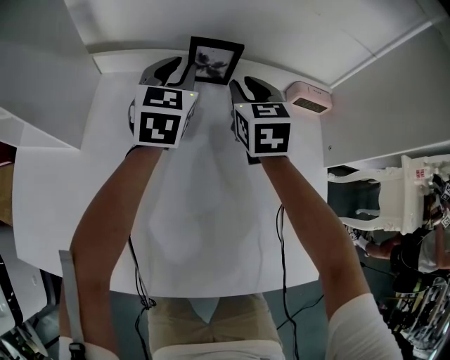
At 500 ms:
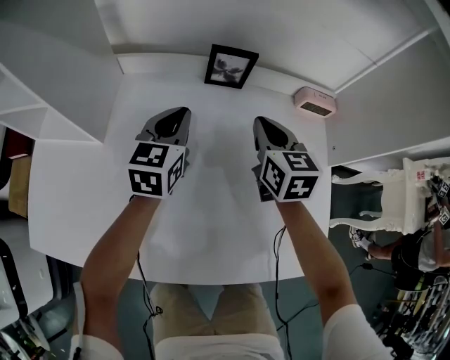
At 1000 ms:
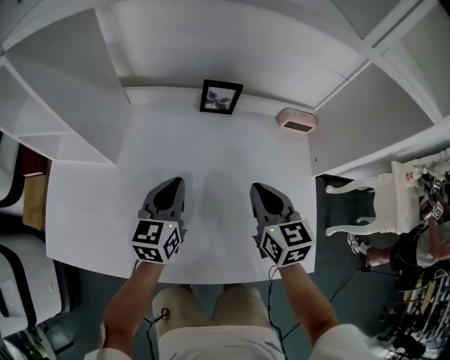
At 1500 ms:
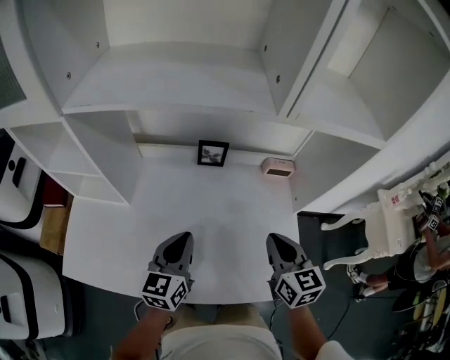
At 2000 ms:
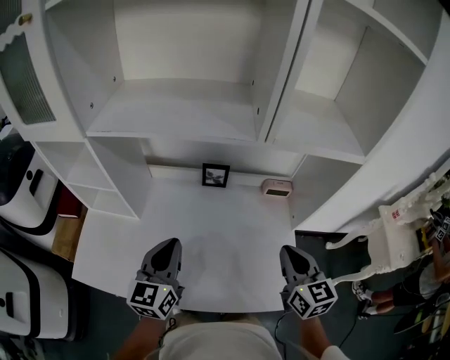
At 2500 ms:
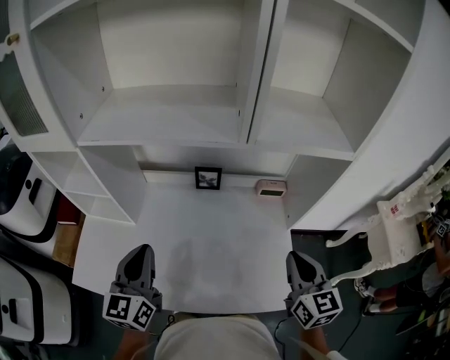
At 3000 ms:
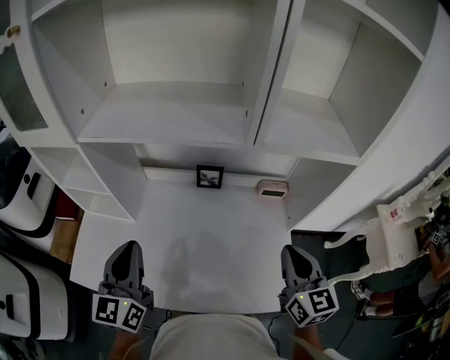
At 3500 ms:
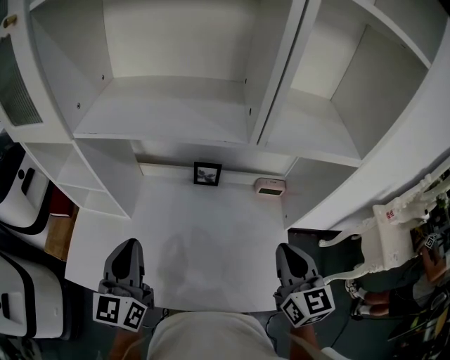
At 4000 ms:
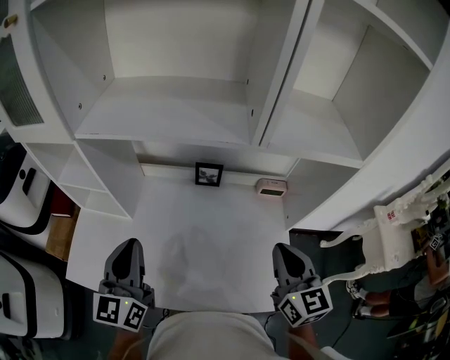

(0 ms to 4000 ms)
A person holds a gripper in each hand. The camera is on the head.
0 ms - 2000 ms: The grippers both shift backward and upward by about 40 cm. The left gripper swivels some 20 degrees.
2000 ms - 4000 ms: The right gripper ends up about 5 cm from where it was, while the left gripper goes some 10 cm upward and to the left.

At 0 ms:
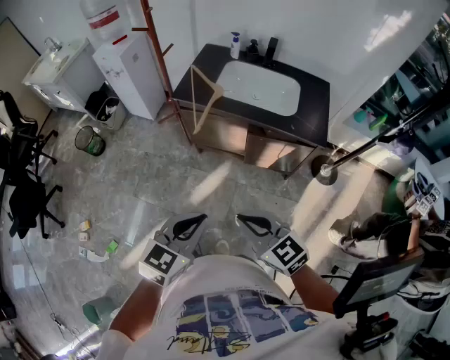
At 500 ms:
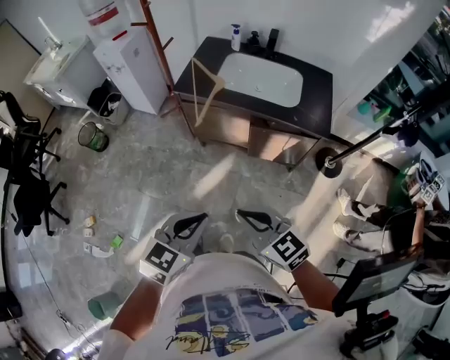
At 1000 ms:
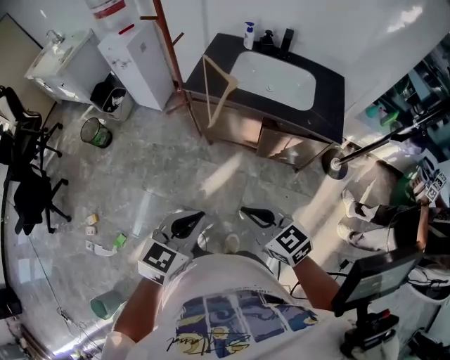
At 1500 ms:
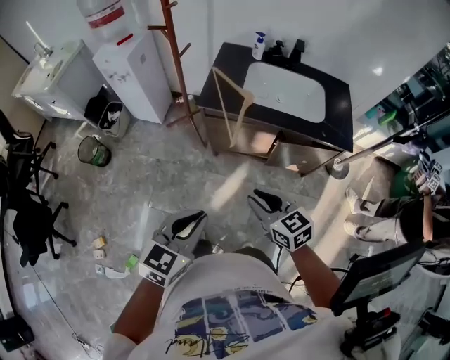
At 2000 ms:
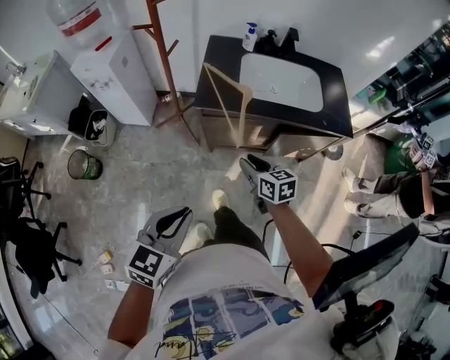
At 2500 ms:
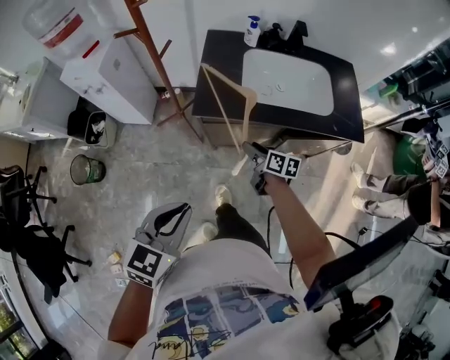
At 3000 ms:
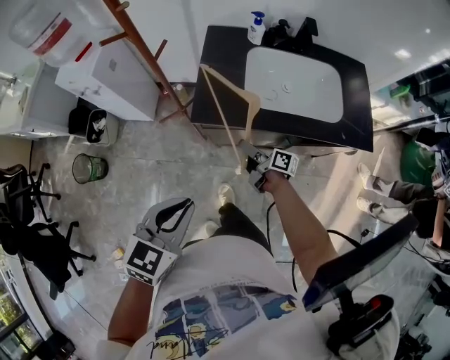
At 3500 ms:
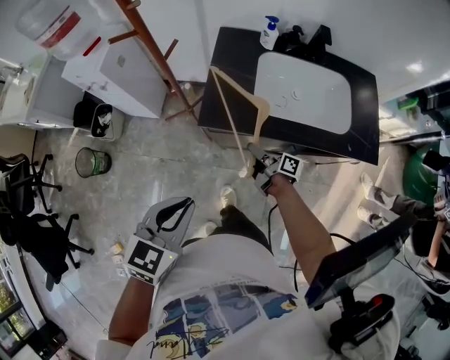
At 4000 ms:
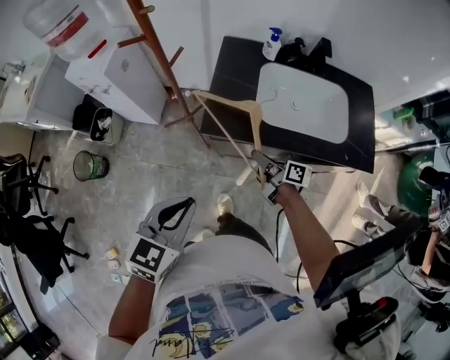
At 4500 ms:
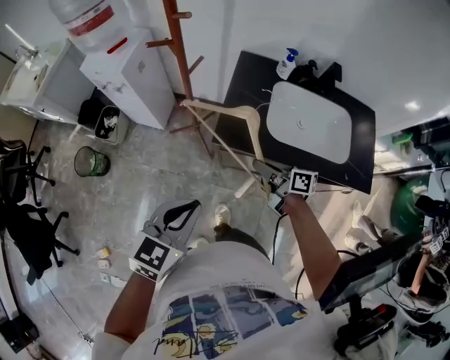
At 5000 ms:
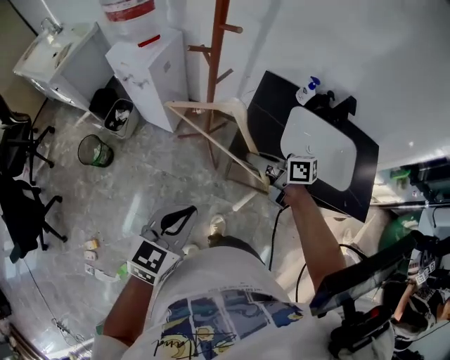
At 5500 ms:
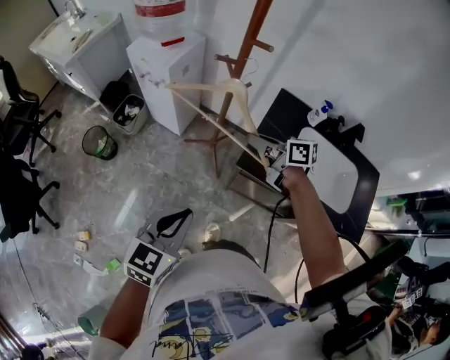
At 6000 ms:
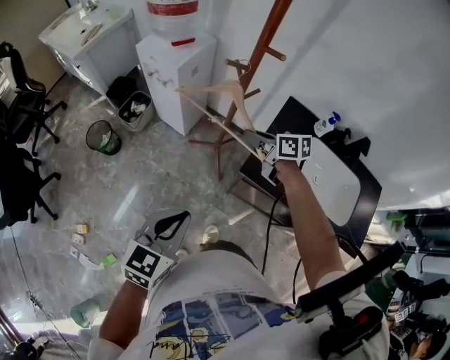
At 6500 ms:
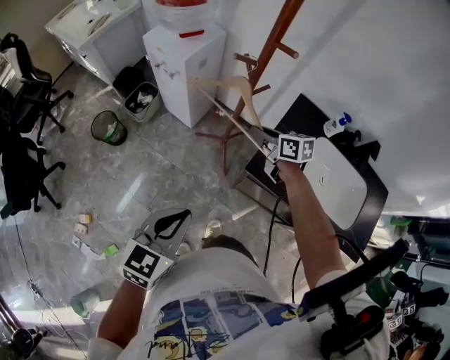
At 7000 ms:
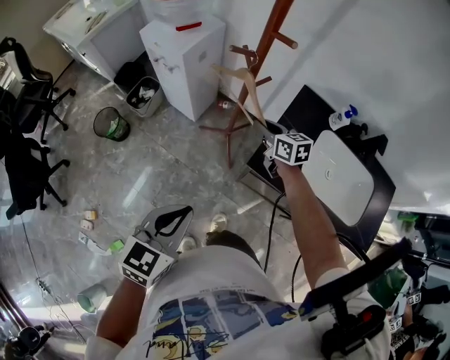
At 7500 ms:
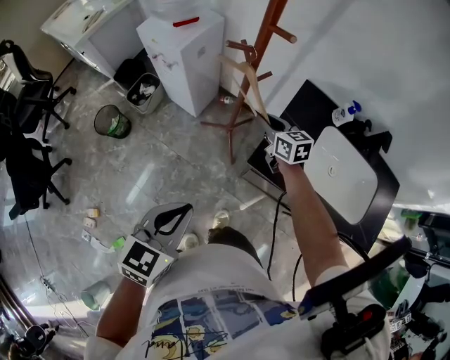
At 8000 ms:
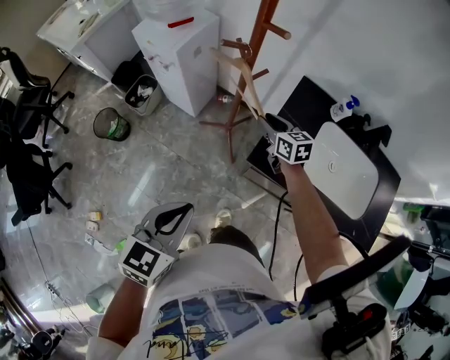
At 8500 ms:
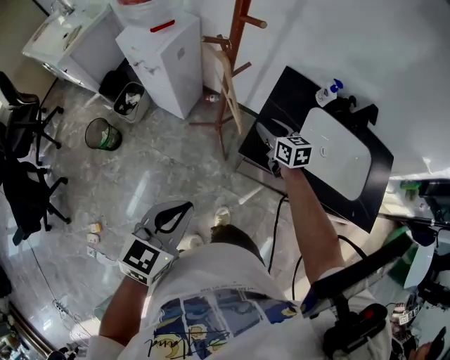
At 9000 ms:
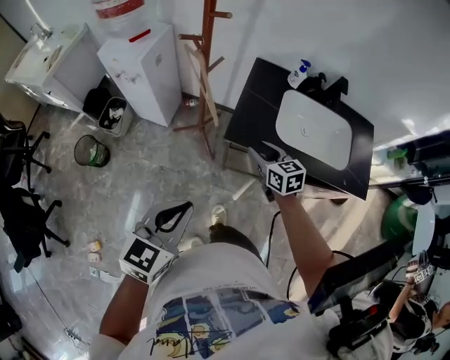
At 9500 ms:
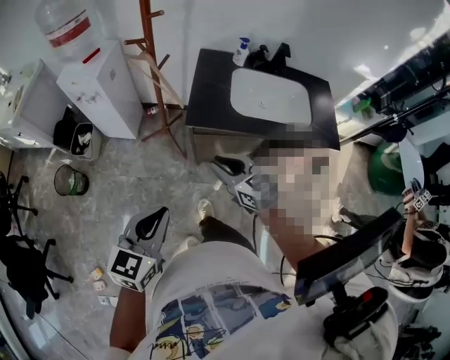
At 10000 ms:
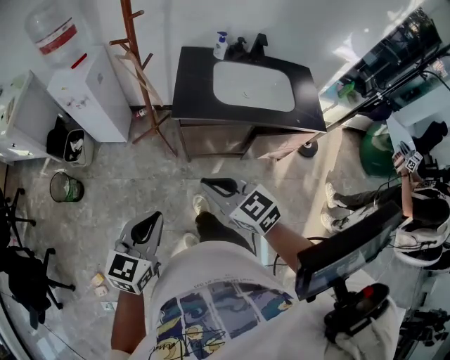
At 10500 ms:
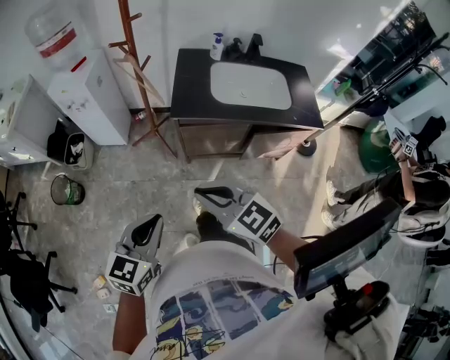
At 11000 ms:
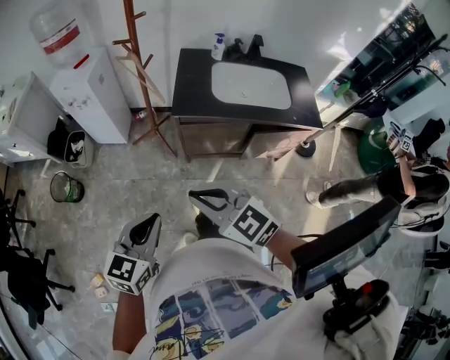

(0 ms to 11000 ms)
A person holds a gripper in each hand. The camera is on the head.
0 ms - 2000 ms: The left gripper moves to the left and forward, about 30 cm; the right gripper heads forward, to the left and downward, covering some 35 cm, turns by approximately 40 degrees, and opens.
2000 ms - 3500 ms: The right gripper moves forward and downward, some 20 cm, rolls clockwise, seen from behind, by approximately 60 degrees, and opens, then closes again. Meanwhile the left gripper moves forward, roughly 15 cm.
3500 ms - 5500 ms: The left gripper moves some 10 cm, and turns by approximately 20 degrees; the right gripper shifts by approximately 30 cm, and rotates approximately 50 degrees.
5500 ms - 7500 ms: The right gripper travels downward and forward by about 15 cm, and changes its angle by roughly 30 degrees.
7500 ms - 9000 ms: The left gripper goes approximately 5 cm backward. The right gripper moves backward and to the right, roughly 20 cm, and opens up.
9000 ms - 11000 ms: The right gripper moves backward and upward, some 35 cm, swivels approximately 30 degrees, and closes its fingers. Meanwhile the left gripper moves backward, approximately 15 cm.

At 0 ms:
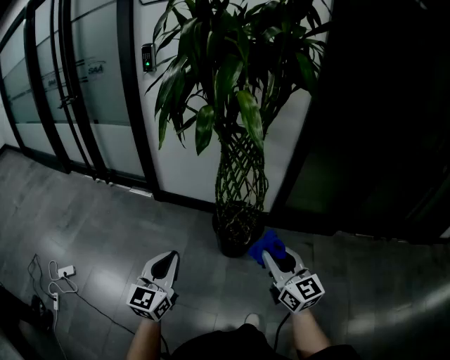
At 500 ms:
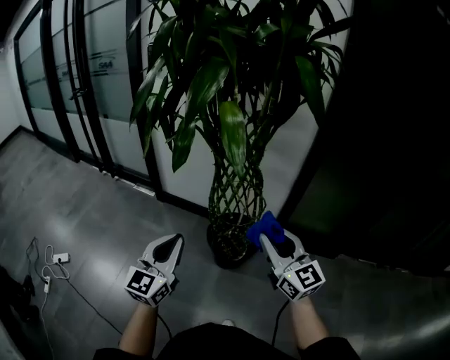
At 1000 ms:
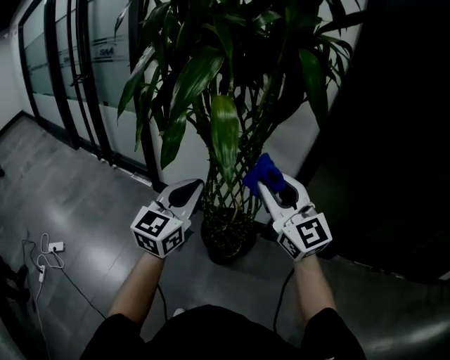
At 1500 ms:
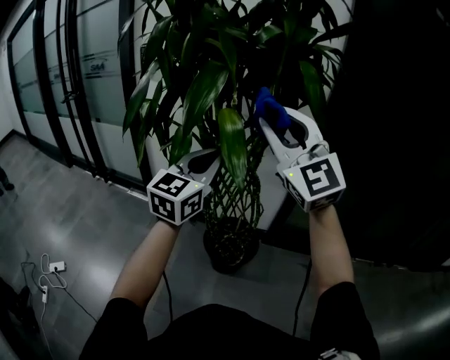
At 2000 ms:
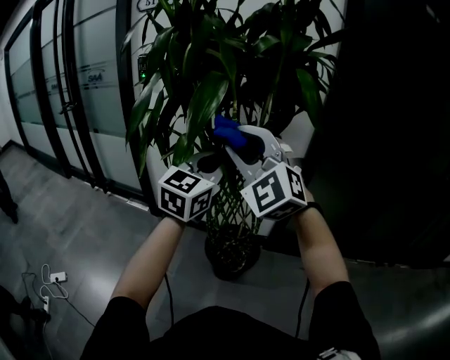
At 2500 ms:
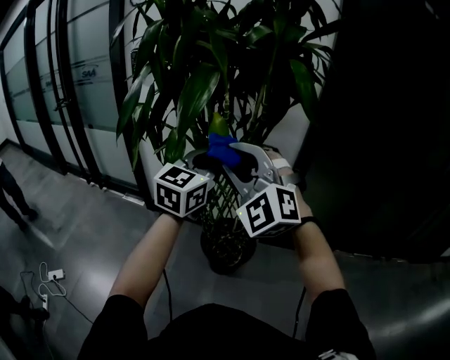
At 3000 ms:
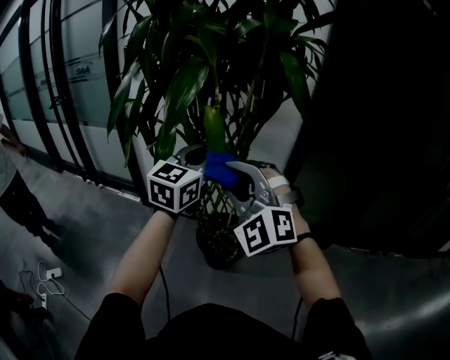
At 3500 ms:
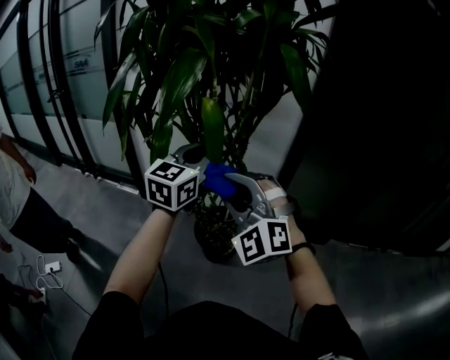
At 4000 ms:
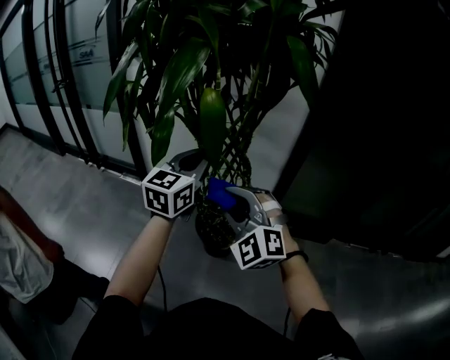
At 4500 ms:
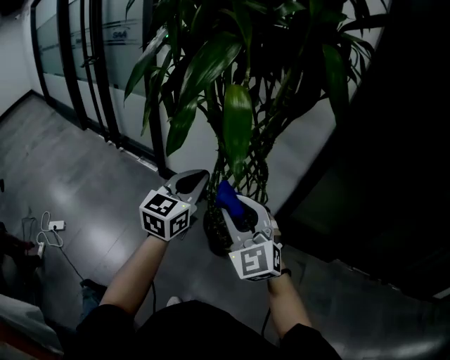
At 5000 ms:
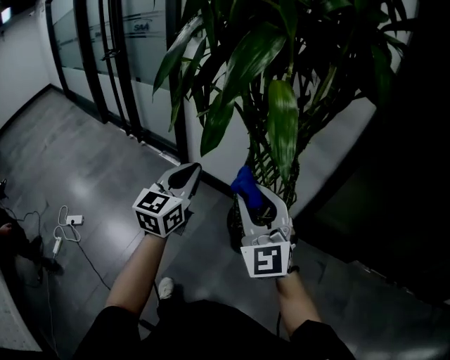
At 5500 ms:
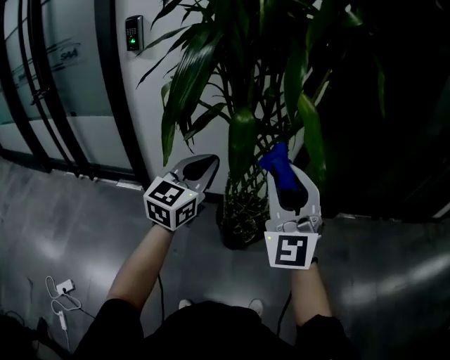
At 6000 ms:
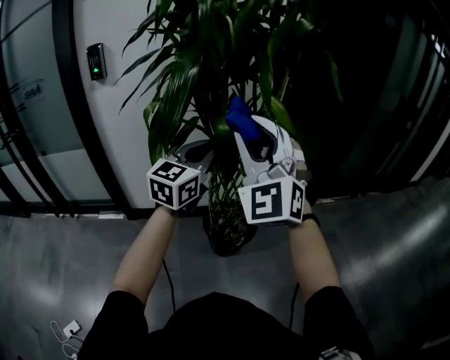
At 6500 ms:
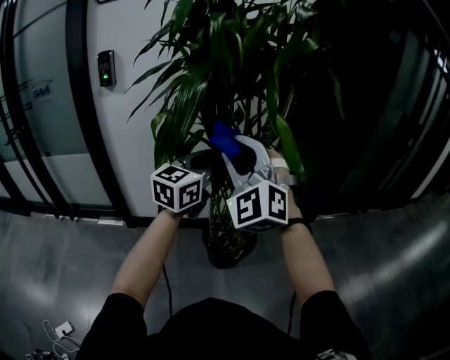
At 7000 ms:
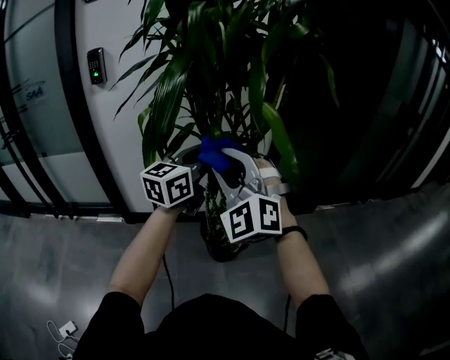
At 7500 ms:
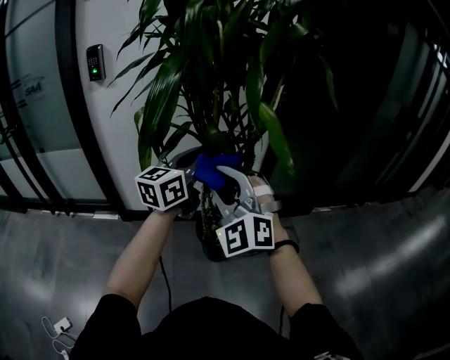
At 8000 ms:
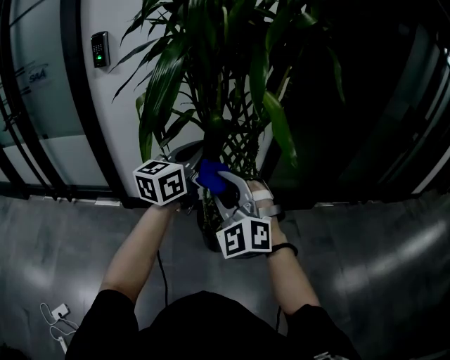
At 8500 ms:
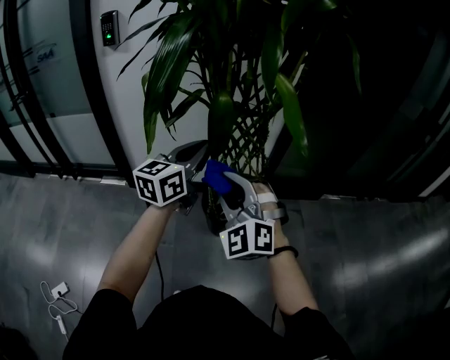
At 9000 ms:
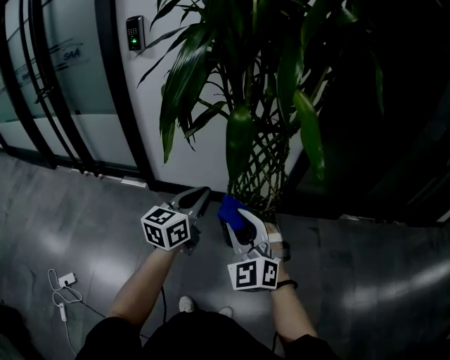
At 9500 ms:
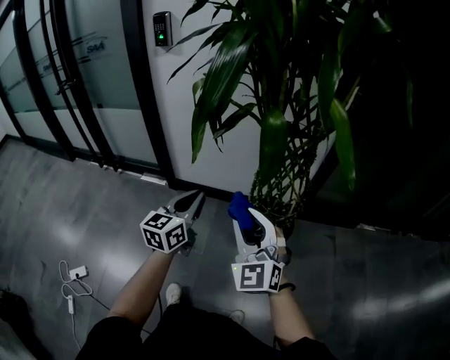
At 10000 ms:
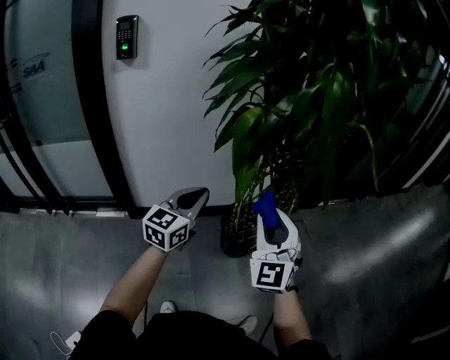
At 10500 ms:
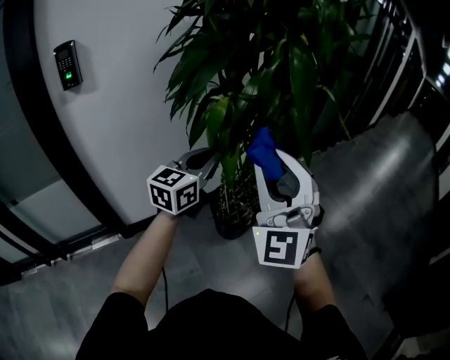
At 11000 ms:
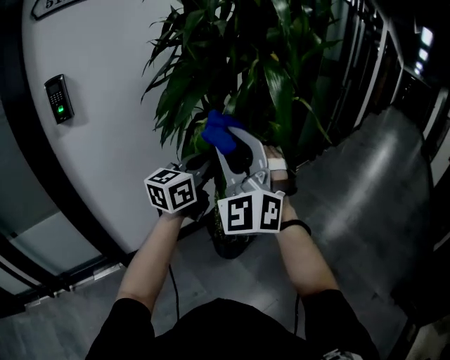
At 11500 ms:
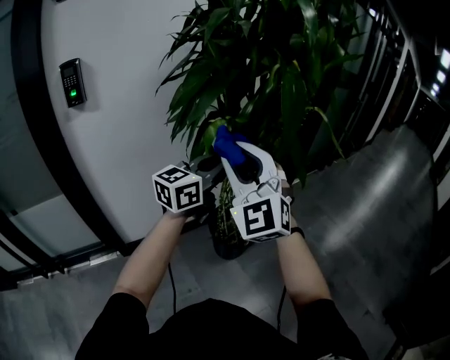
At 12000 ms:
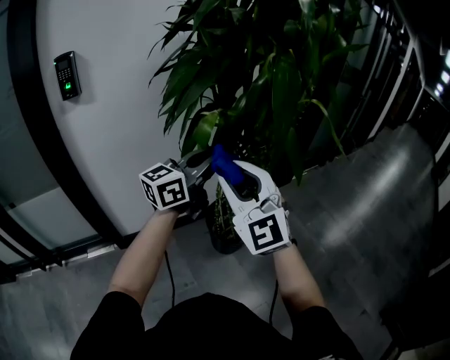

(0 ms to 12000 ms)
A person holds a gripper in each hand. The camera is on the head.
0 ms - 2000 ms: The left gripper goes roughly 40 cm forward, upward and to the right; the right gripper is displaced upward and forward by approximately 40 cm, and rolls counterclockwise, seen from behind, by about 70 degrees.
2000 ms - 4000 ms: The left gripper goes approximately 10 cm downward, while the right gripper goes approximately 20 cm downward.
4000 ms - 6000 ms: The right gripper shifts approximately 20 cm upward, and changes its angle by some 40 degrees, while the left gripper reaches roughly 5 cm downward, then returns, and changes its angle by approximately 30 degrees.
6000 ms - 8000 ms: The right gripper heads downward, covering roughly 15 cm, and changes its angle by roughly 20 degrees.
8000 ms - 10000 ms: The right gripper ends up roughly 10 cm from where it was, and changes its angle by roughly 40 degrees. Meanwhile the left gripper shifts by roughly 25 cm.
10000 ms - 12000 ms: The left gripper moves upward and to the right, approximately 20 cm, and changes its angle by some 40 degrees. Meanwhile the right gripper travels upward and to the left by some 15 cm.
